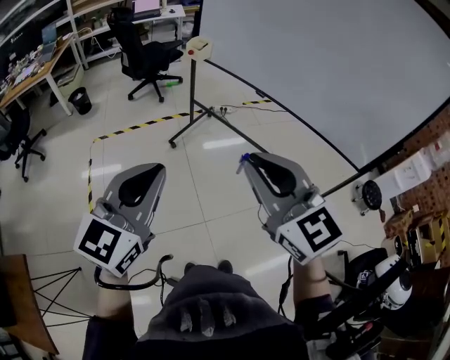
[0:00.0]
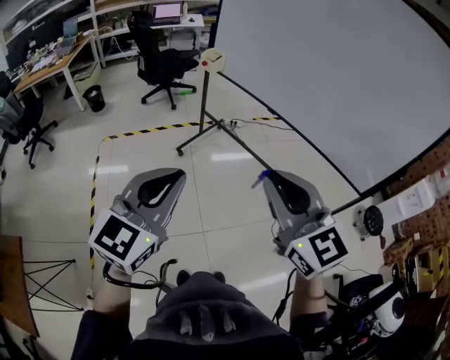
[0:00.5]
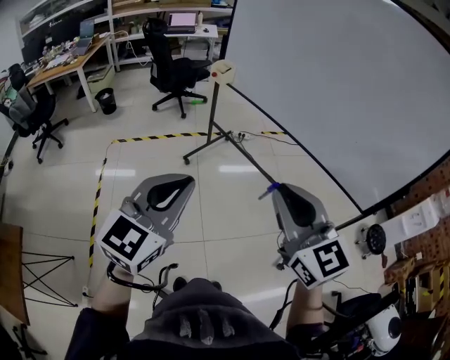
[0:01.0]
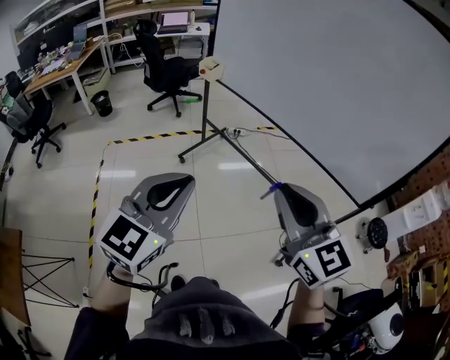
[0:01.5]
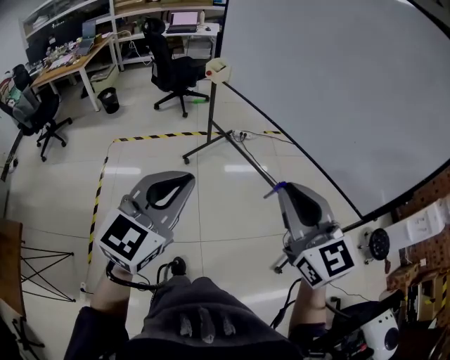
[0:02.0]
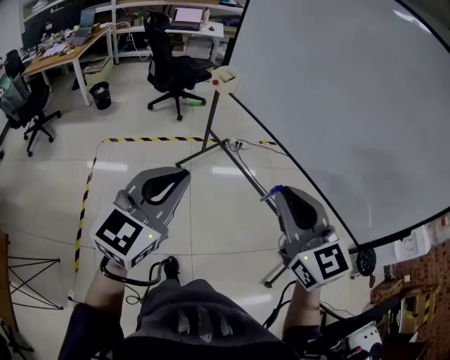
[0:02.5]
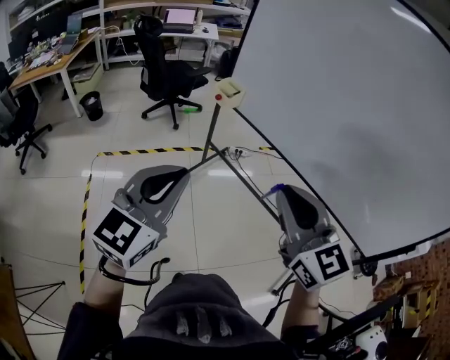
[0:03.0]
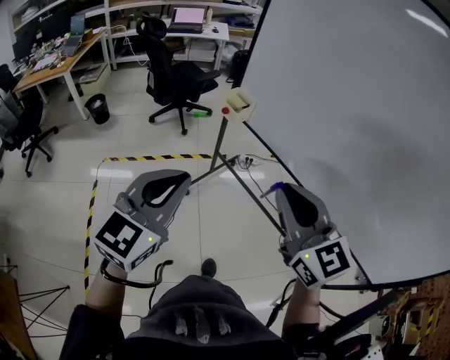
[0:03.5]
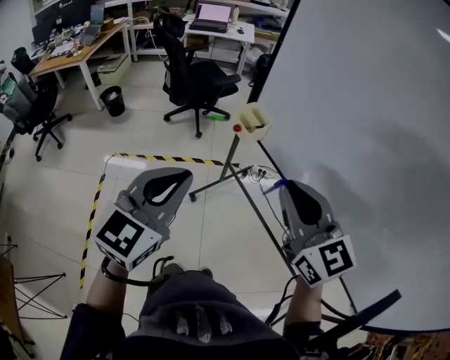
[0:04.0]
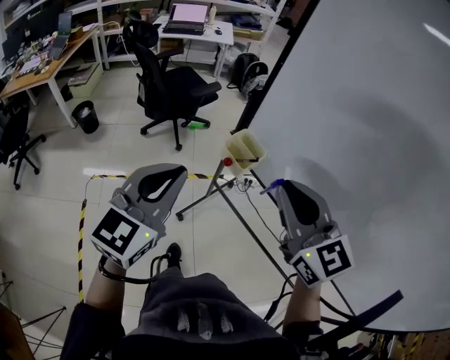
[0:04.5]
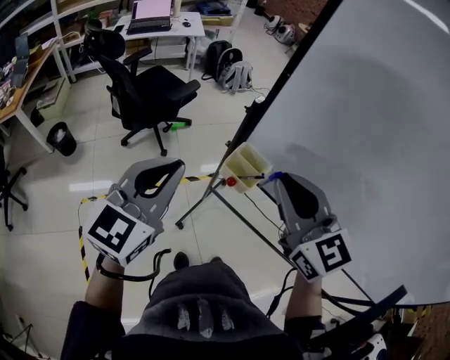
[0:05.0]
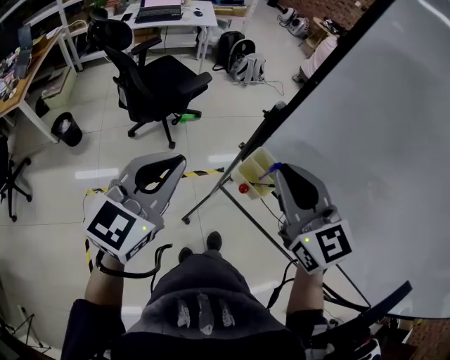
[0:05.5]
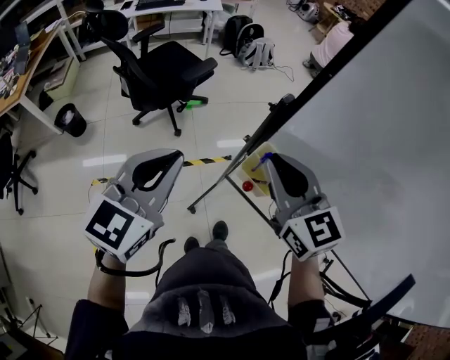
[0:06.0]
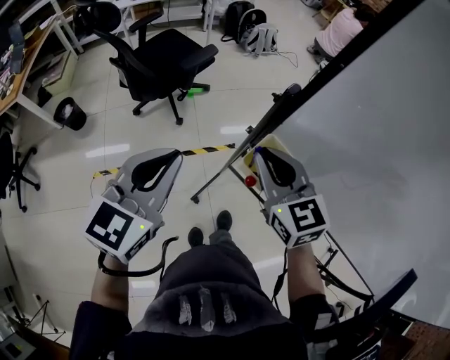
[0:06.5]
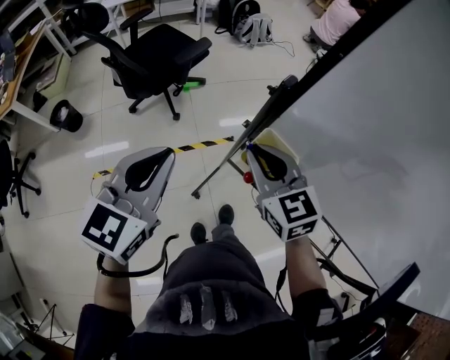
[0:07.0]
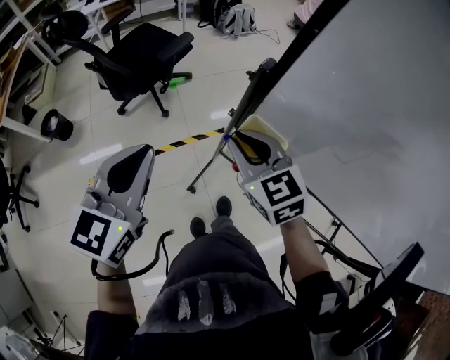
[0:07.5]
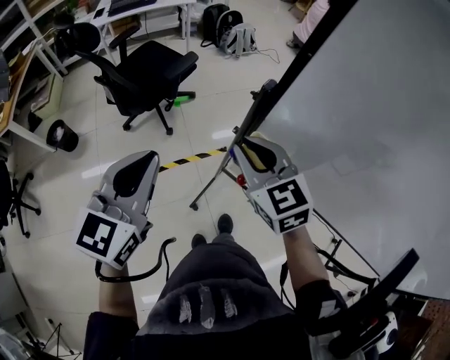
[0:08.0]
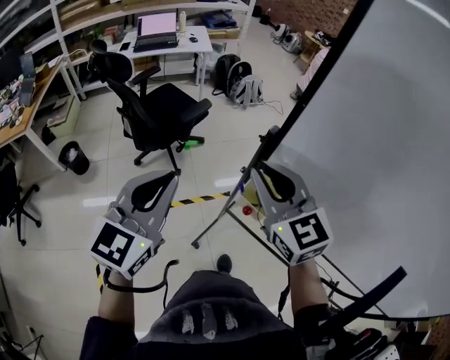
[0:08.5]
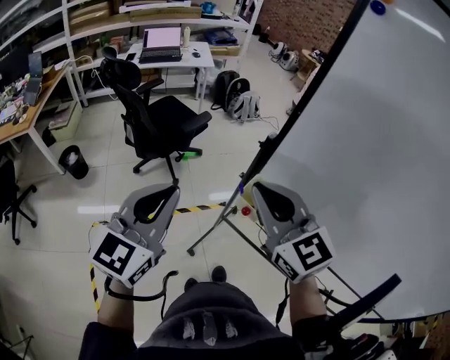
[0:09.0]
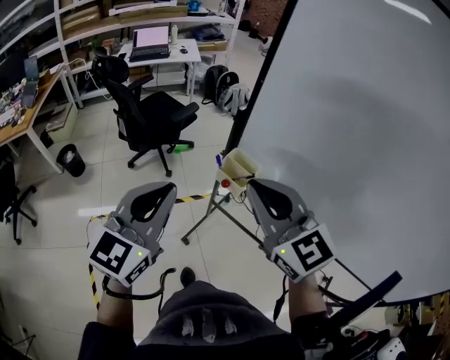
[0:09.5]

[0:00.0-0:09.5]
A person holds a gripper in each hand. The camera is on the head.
0:00.0 to 0:02.0: The grippers both shift to the right by about 15 cm.
0:02.0 to 0:04.0: The two grippers travel together, forward, about 50 cm.
0:04.0 to 0:05.5: The right gripper travels forward and to the left by about 30 cm; the left gripper moves forward, roughly 35 cm.
0:05.5 to 0:07.5: The right gripper is displaced downward and forward by about 15 cm; the left gripper goes some 5 cm downward.
0:07.5 to 0:09.5: The two grippers go approximately 25 cm backward and upward. The right gripper swivels roughly 20 degrees.

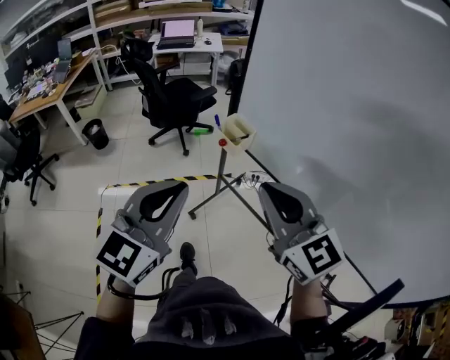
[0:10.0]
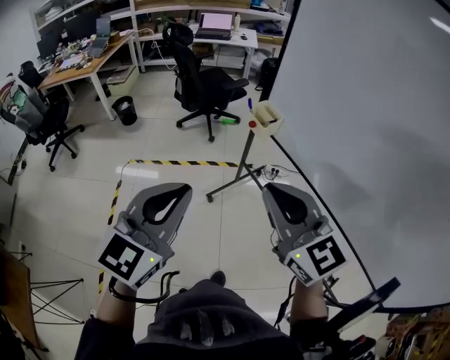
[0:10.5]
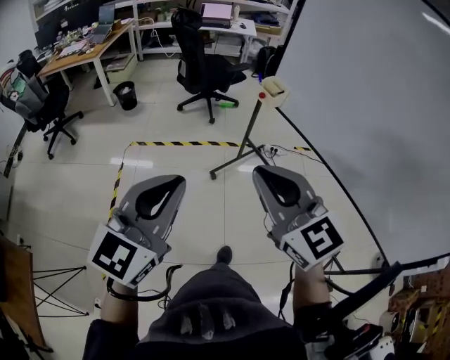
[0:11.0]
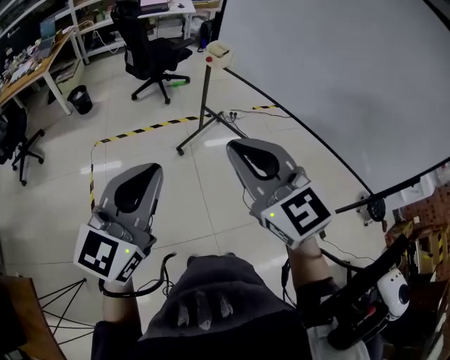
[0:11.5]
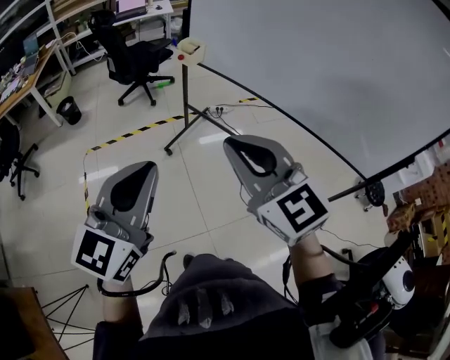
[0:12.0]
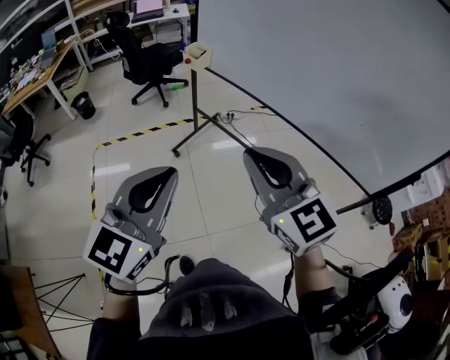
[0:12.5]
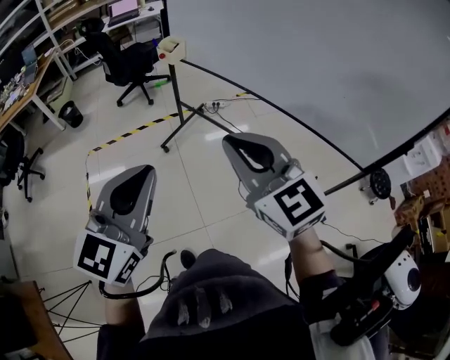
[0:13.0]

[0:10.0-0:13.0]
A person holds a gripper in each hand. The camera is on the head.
0:10.0 to 0:11.5: The left gripper moves backward, approximately 35 cm. The right gripper travels backward and to the left by about 35 cm.
0:11.5 to 0:13.0: Both grippers move to the right, roughly 15 cm.

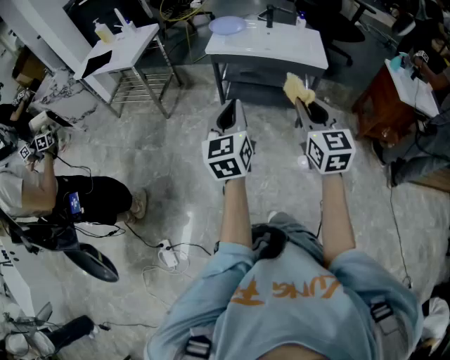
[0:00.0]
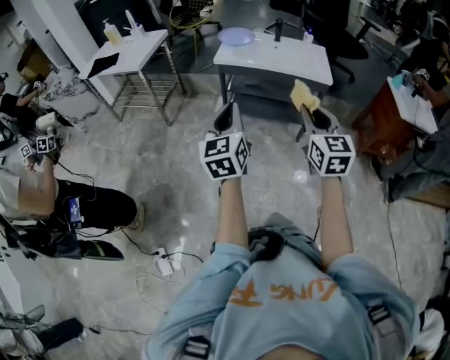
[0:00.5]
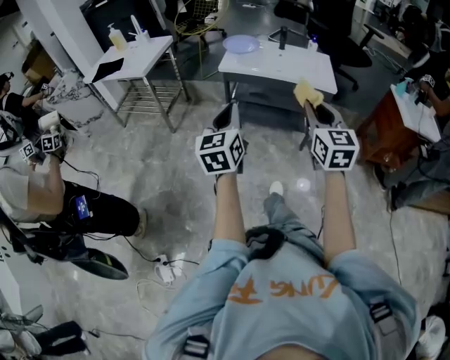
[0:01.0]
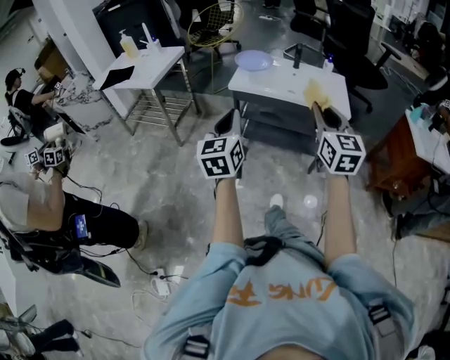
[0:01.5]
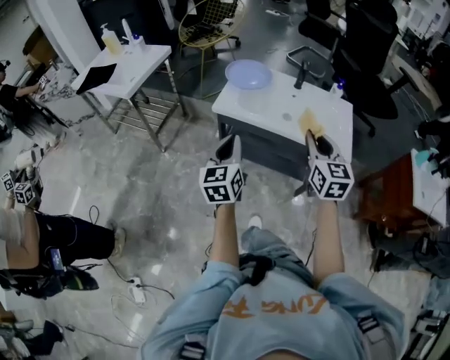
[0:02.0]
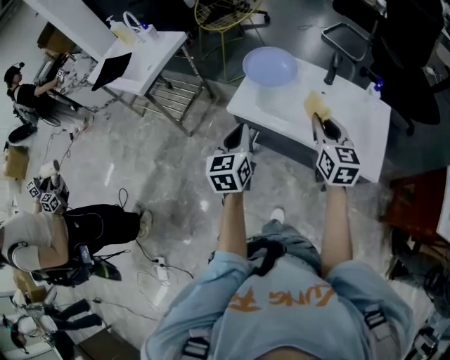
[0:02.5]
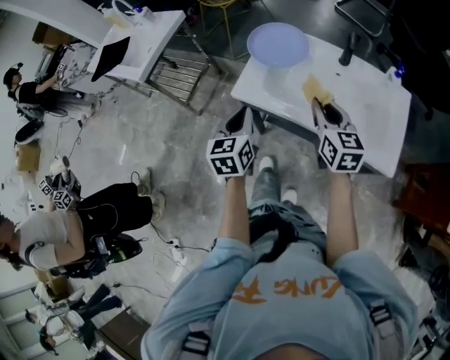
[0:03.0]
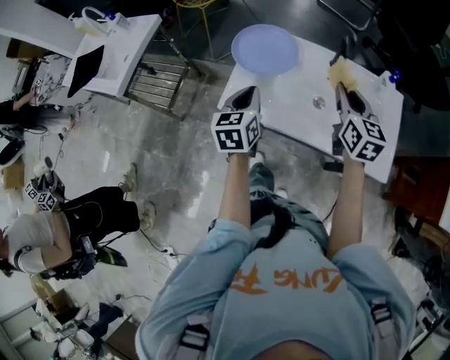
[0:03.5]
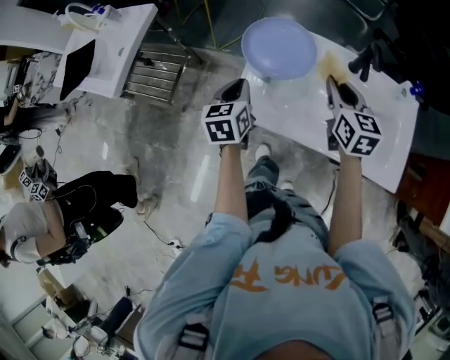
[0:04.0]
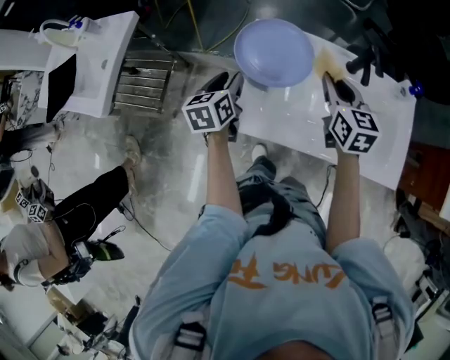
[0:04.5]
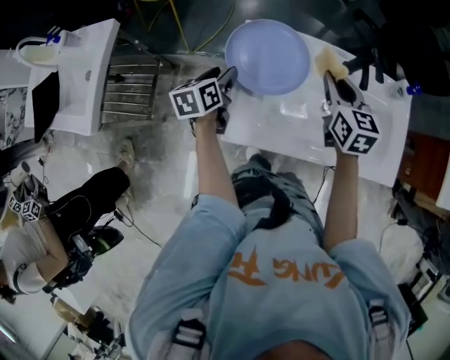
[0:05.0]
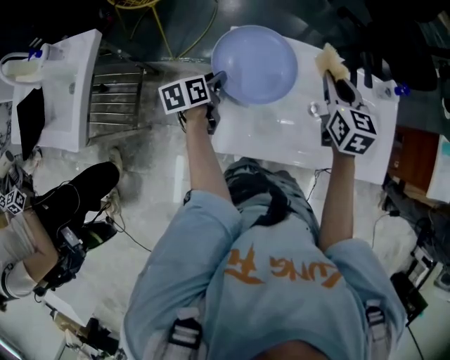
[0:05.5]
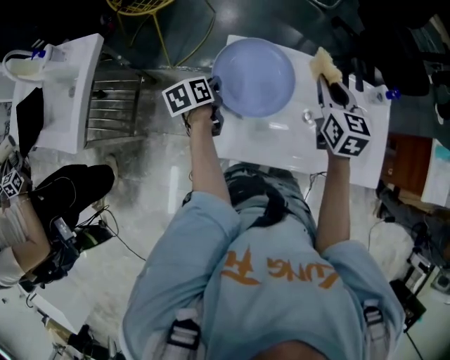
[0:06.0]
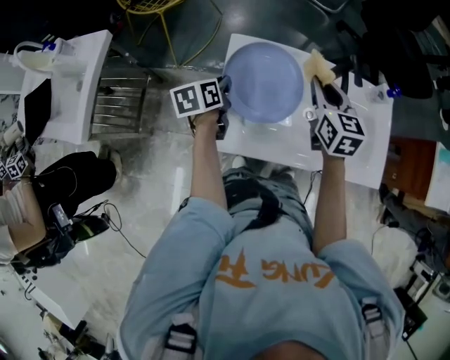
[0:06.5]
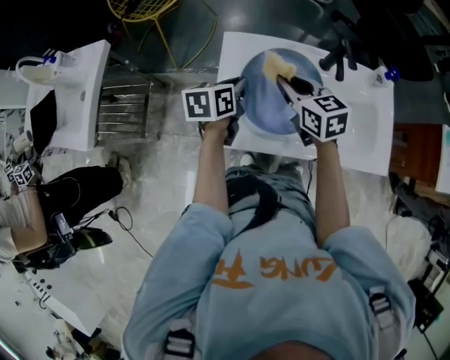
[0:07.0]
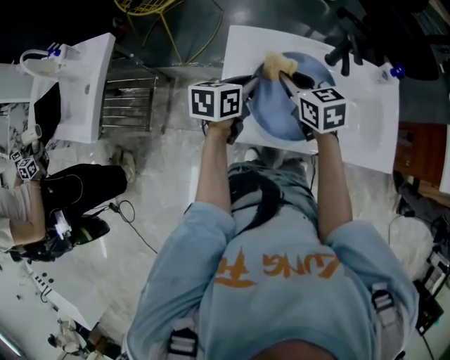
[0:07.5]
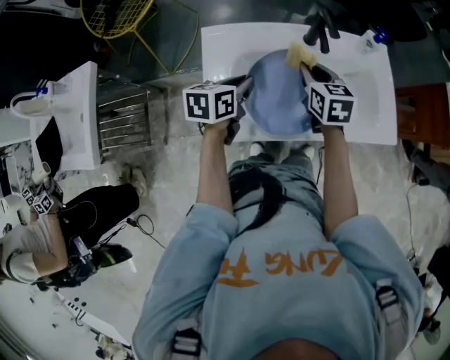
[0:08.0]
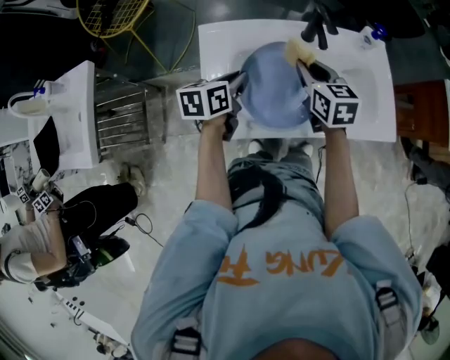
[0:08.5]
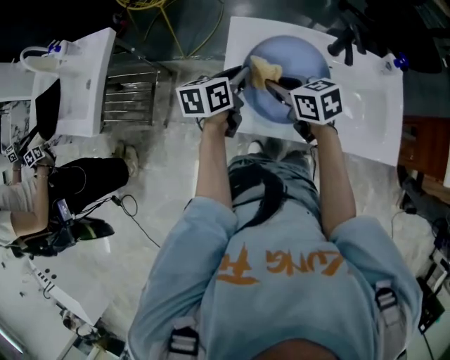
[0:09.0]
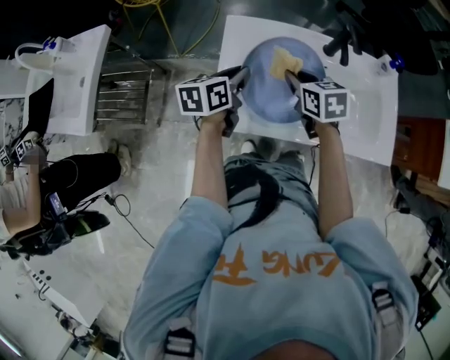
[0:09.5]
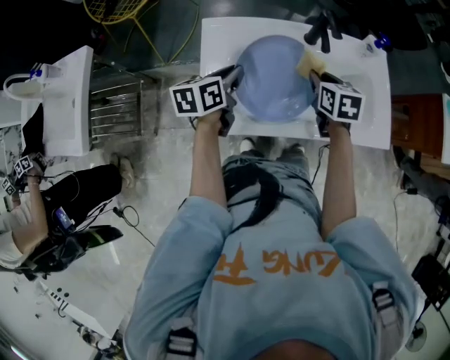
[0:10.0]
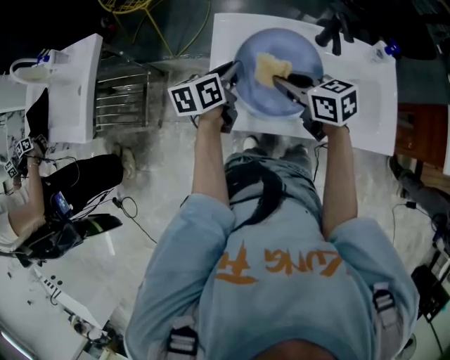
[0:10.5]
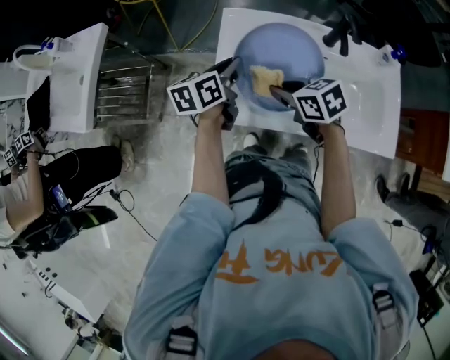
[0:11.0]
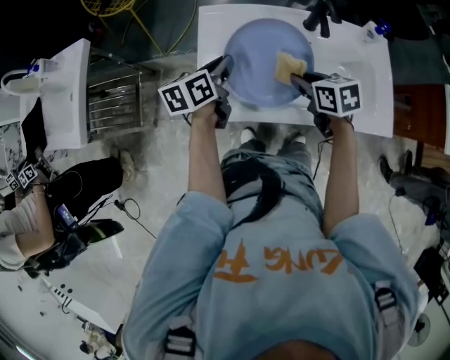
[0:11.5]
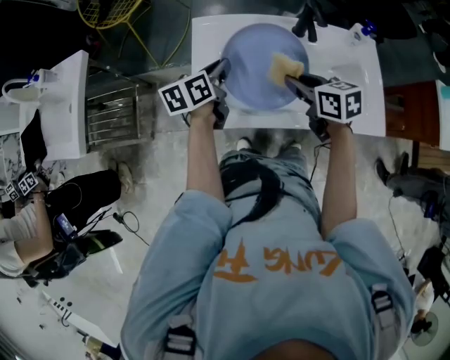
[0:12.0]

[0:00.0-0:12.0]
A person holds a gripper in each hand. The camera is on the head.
0:00.0 to 0:02.0: The two grippers go approximately 40 cm forward.
0:02.0 to 0:04.0: Both grippers move forward, roughly 40 cm. The right gripper rotates roughly 20 degrees, while the left gripper swivels approximately 30 degrees.
0:04.0 to 0:06.0: The left gripper moves forward and downward, approximately 20 cm, rotates some 30 degrees, and opens, then closes again. Meanwhile the right gripper goes approximately 10 cm forward.
0:06.0 to 0:08.0: The left gripper shifts roughly 20 cm to the right and upward, and swivels about 40 degrees, while the right gripper travels downward and backward by roughly 10 cm.
0:10.0 to 0:12.0: The right gripper rotates roughly 30 degrees.

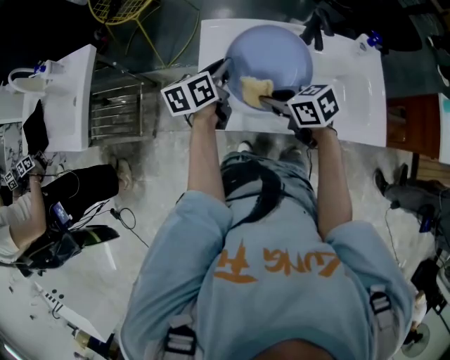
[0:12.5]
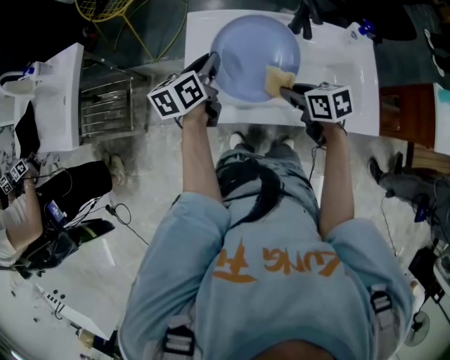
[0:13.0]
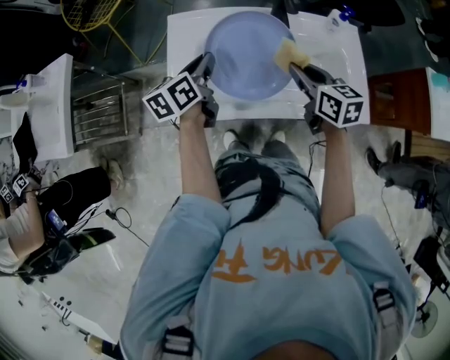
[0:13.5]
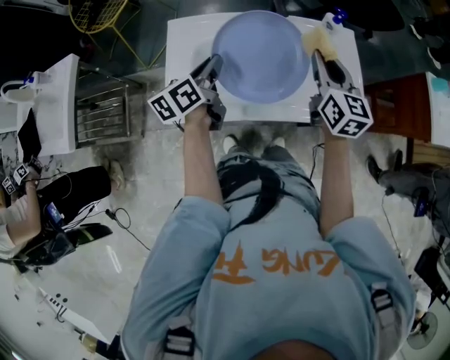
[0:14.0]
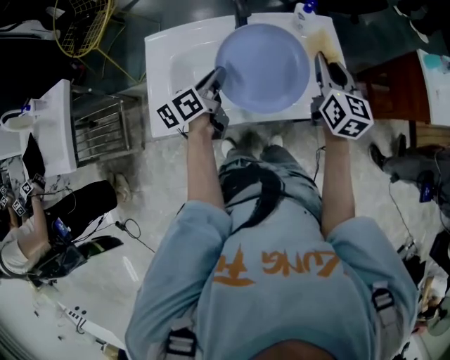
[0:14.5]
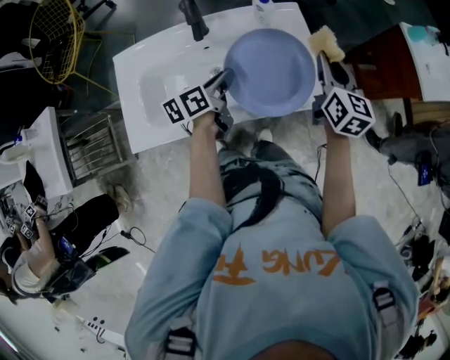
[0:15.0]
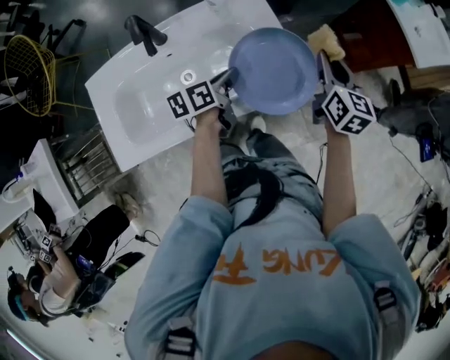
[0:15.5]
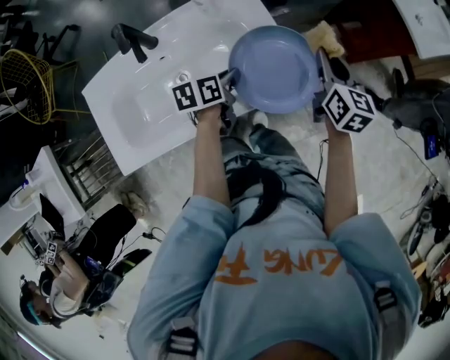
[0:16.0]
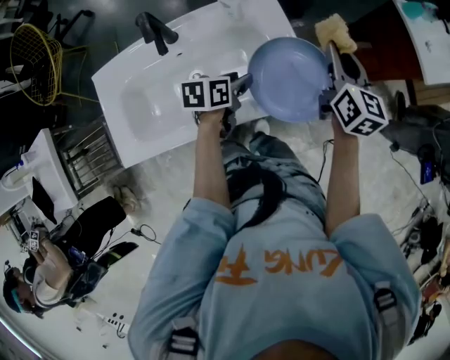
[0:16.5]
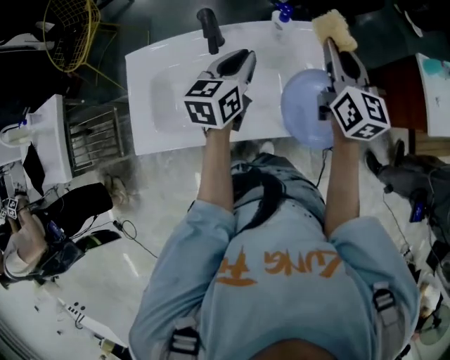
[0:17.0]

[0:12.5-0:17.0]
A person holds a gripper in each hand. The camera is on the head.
0:12.5 to 0:14.5: The left gripper ends up some 20 cm from where it was. Meanwhile the right gripper shifts by roughly 35 cm, and changes its angle by roughly 70 degrees.
0:14.5 to 0:17.0: The left gripper shifts roughly 20 cm forward, to the right and upward, changes its angle by roughly 30 degrees, and opens, then closes once more, while the right gripper is displaced forward and upward by approximately 10 cm, and reaches about 25 cm to the right, then returns.
